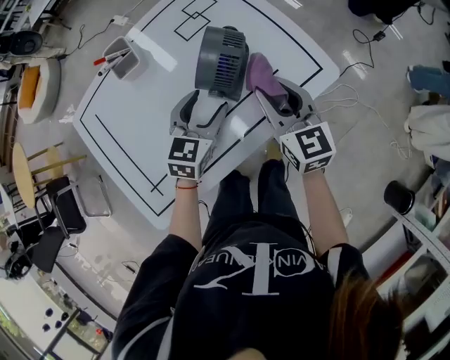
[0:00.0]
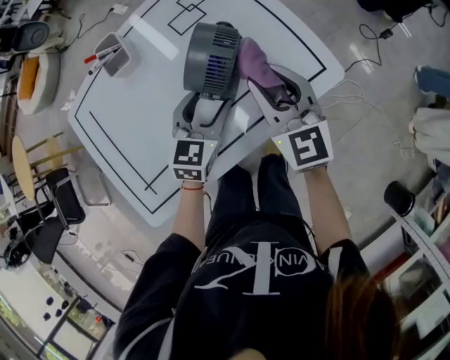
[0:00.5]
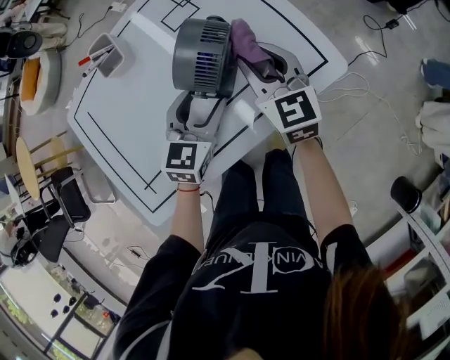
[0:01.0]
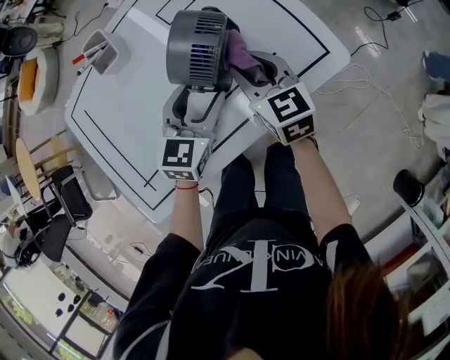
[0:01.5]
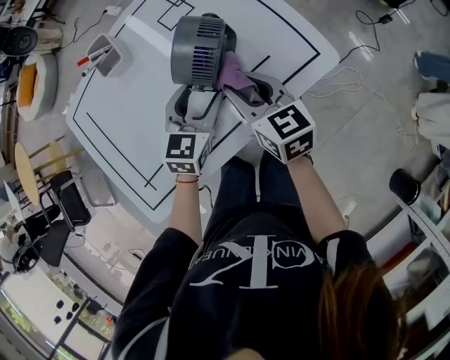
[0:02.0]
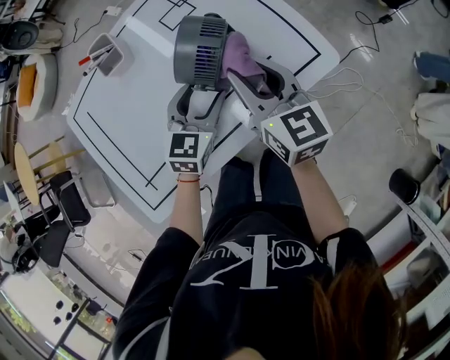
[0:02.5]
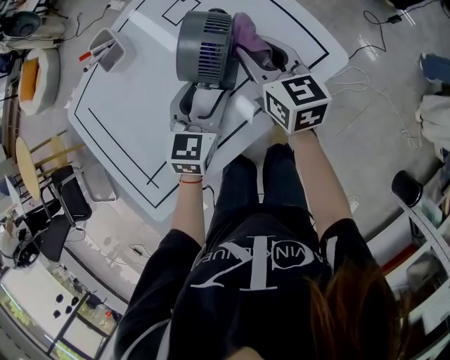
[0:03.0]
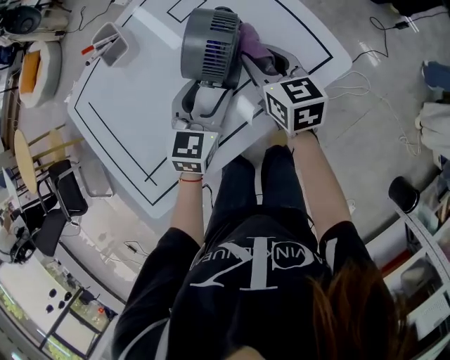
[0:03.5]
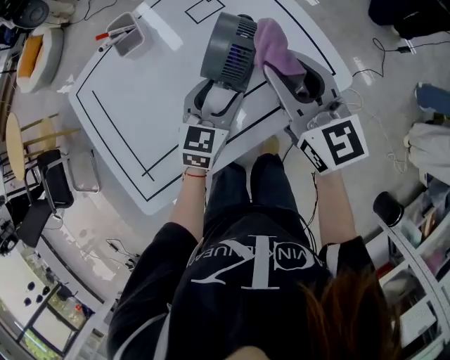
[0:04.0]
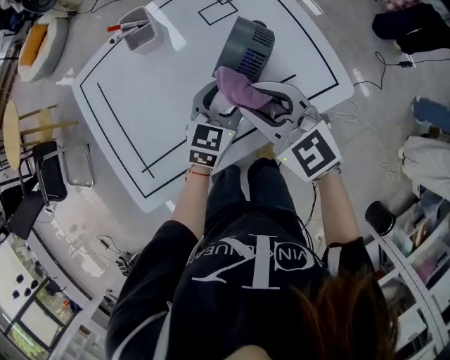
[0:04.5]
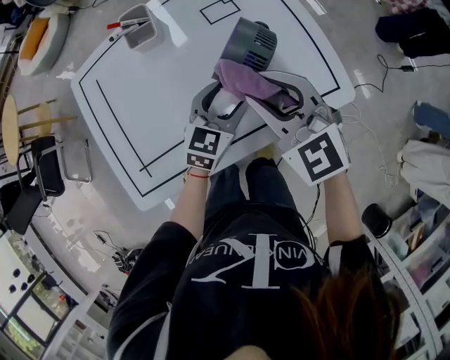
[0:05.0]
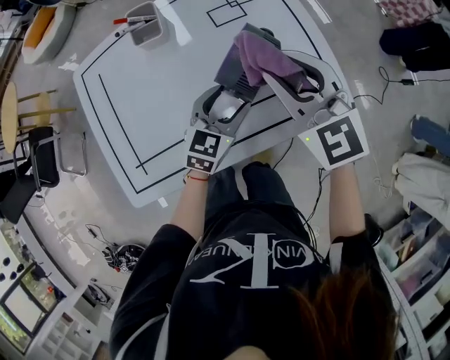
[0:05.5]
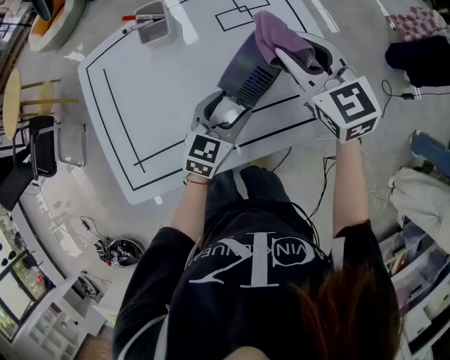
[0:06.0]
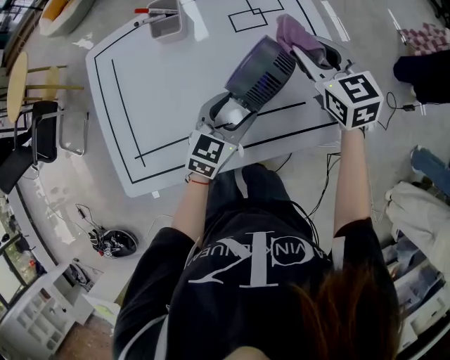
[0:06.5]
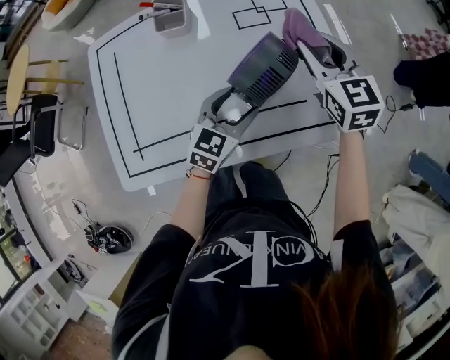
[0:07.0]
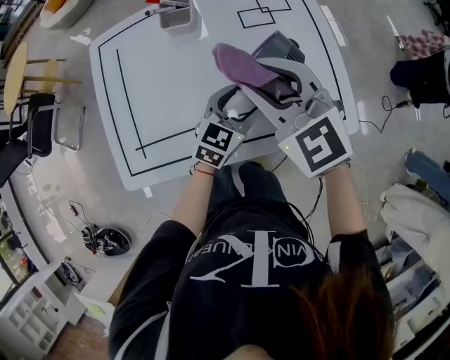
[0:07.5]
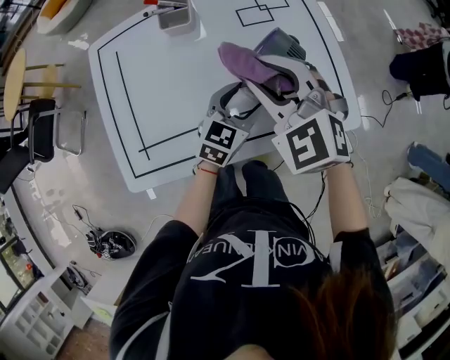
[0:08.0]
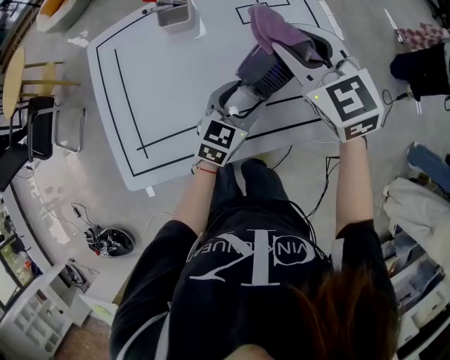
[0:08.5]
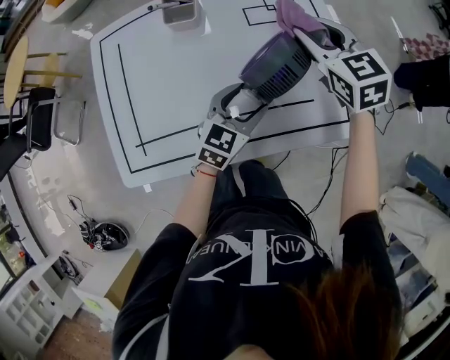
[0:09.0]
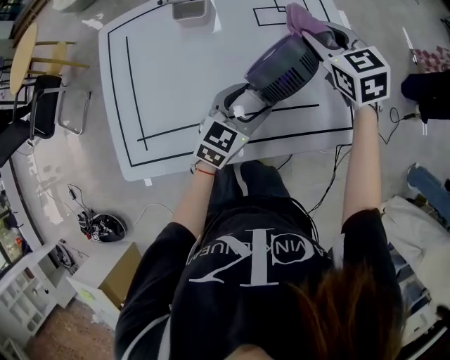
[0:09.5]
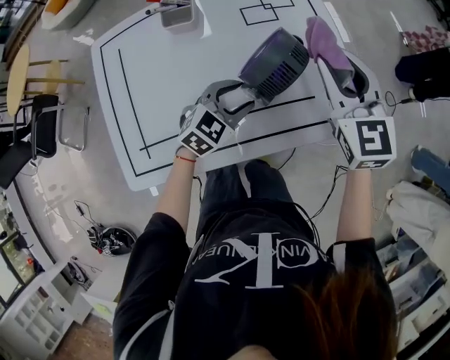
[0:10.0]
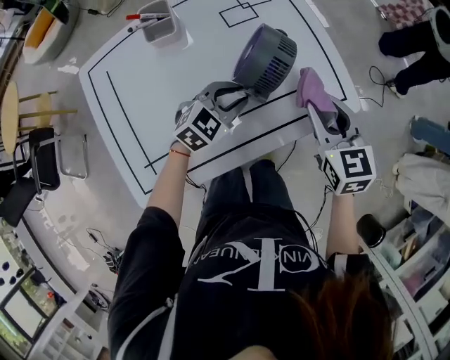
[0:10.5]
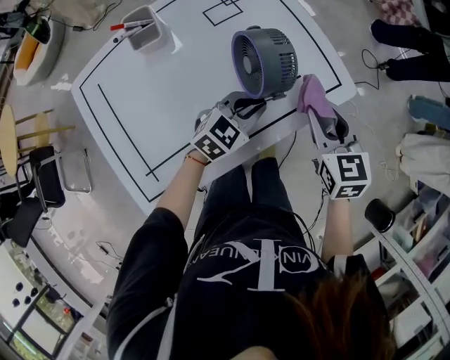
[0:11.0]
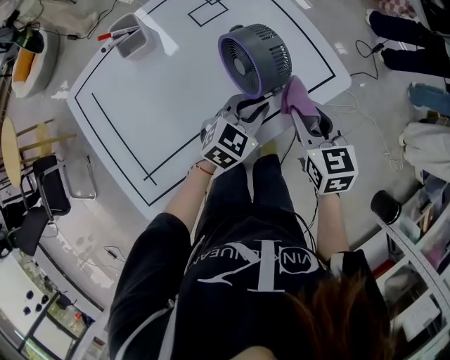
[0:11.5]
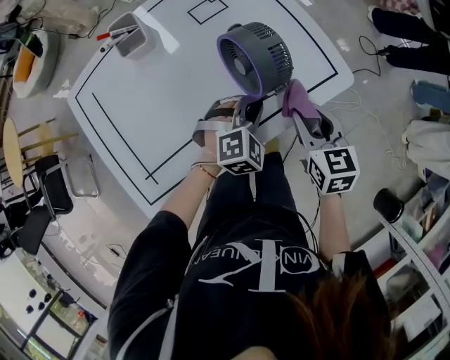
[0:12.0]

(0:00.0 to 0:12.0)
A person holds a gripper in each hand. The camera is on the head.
0:02.0 - 0:04.0: The right gripper swings up and down, approximately 15 cm each way, with 2 reversals, and swivels about 20 degrees.
0:04.0 - 0:06.0: The right gripper heads forward, covering roughly 10 cm, and swivels about 30 degrees.
0:06.0 - 0:08.0: The right gripper is displaced to the left and backward by roughly 15 cm, and changes its angle by approximately 30 degrees.
0:08.0 - 0:10.0: The right gripper goes approximately 15 cm to the right and forward, and swivels about 30 degrees, while the left gripper turns by approximately 20 degrees.
0:10.0 - 0:12.0: The right gripper travels downward, backward and to the right by roughly 20 cm, and swivels about 40 degrees; the left gripper moves to the right, about 10 cm, swivels approximately 30 degrees, and closes its fingers.

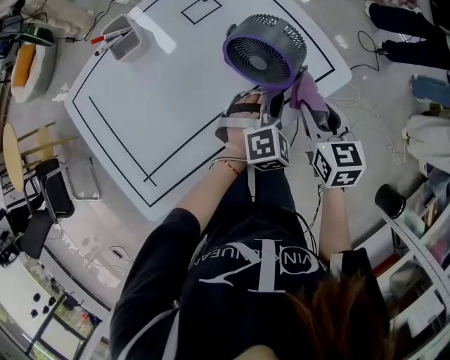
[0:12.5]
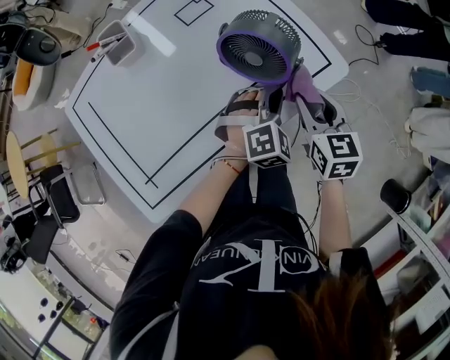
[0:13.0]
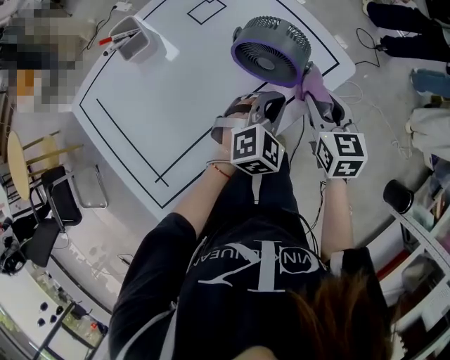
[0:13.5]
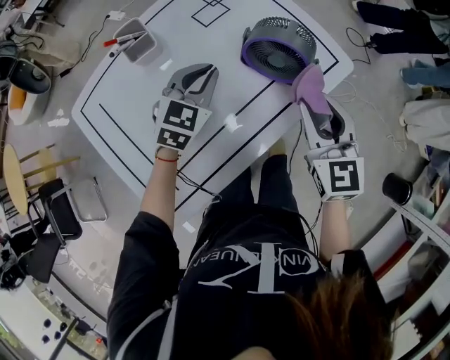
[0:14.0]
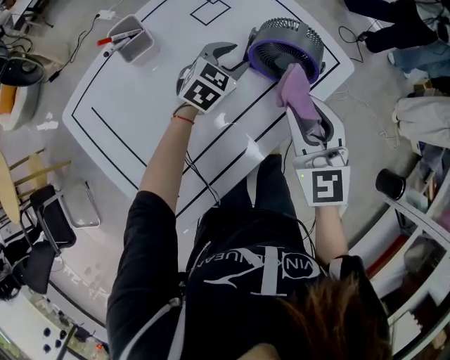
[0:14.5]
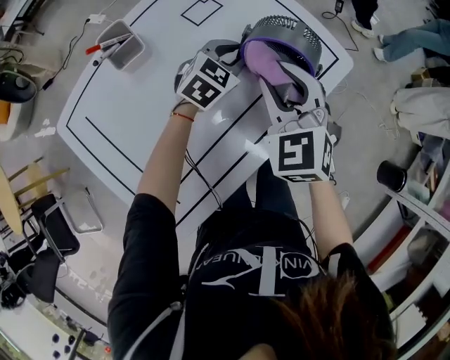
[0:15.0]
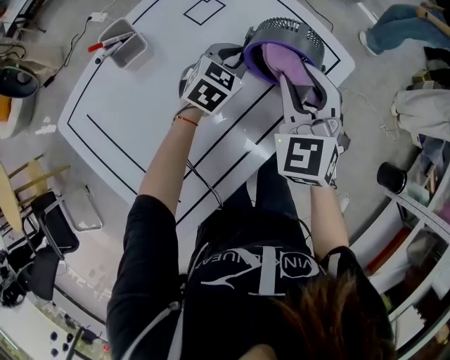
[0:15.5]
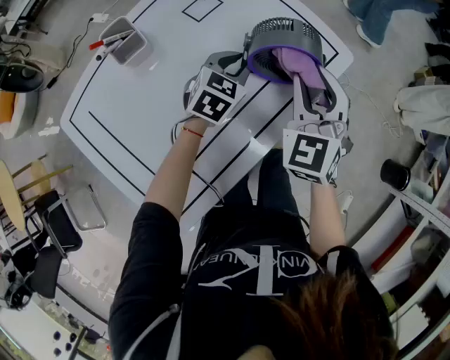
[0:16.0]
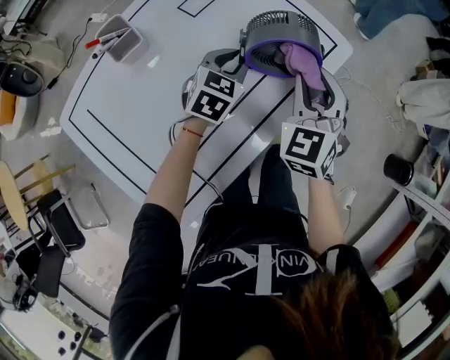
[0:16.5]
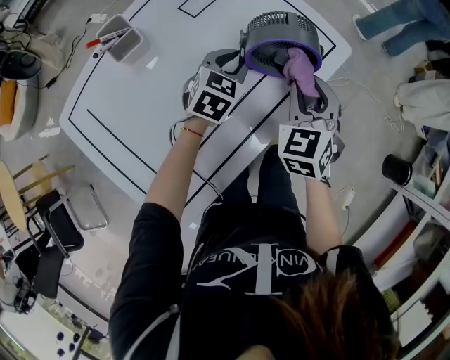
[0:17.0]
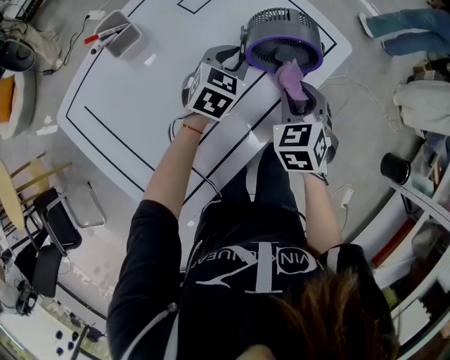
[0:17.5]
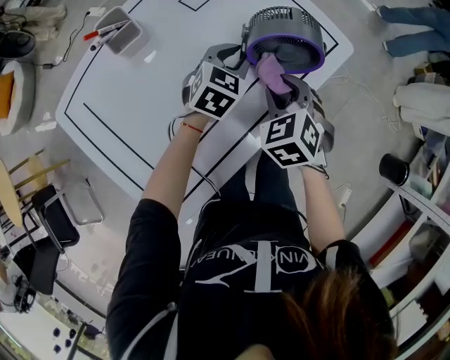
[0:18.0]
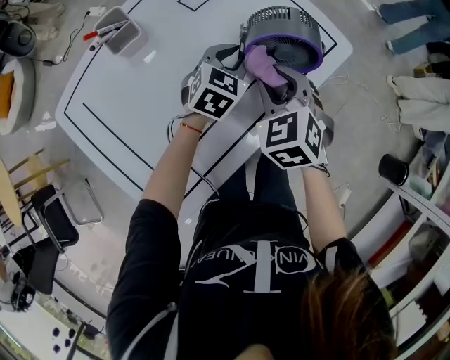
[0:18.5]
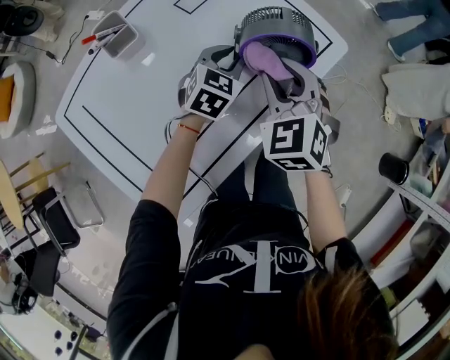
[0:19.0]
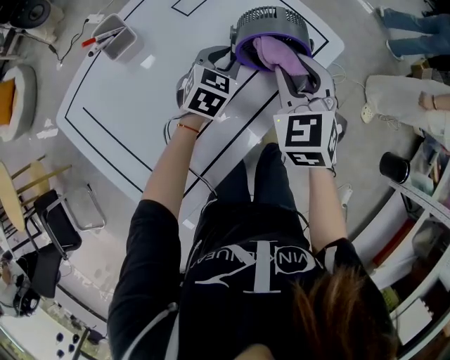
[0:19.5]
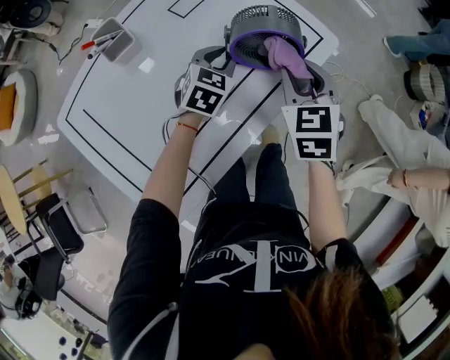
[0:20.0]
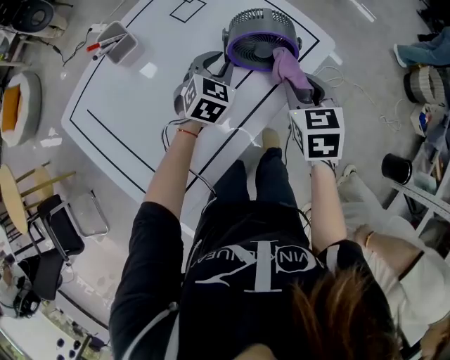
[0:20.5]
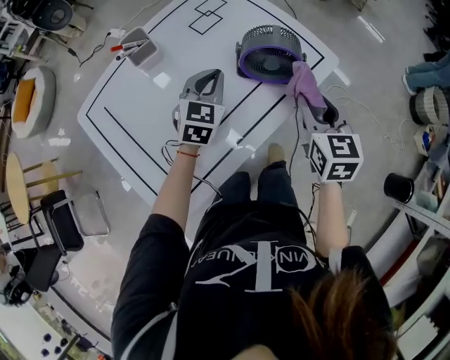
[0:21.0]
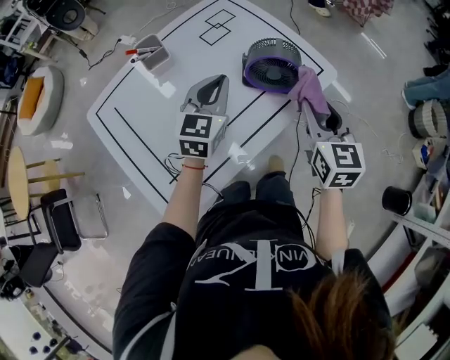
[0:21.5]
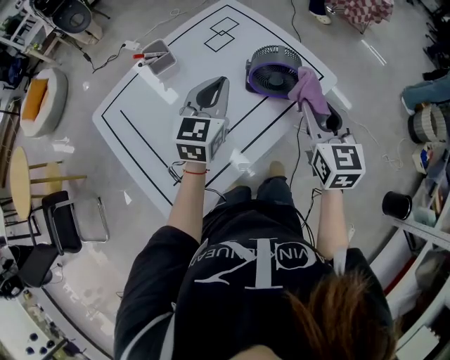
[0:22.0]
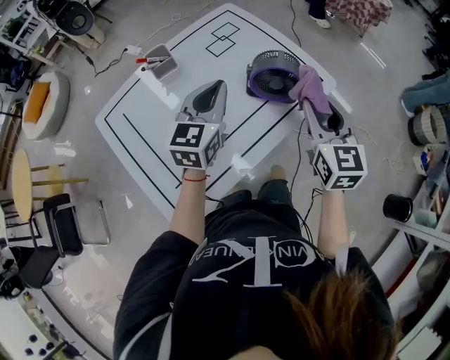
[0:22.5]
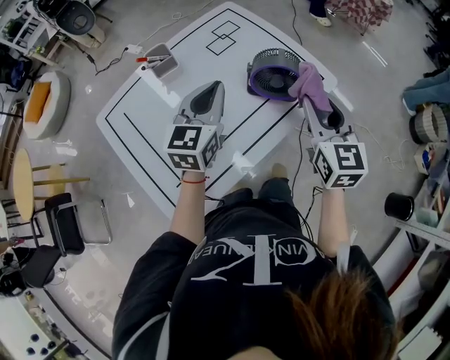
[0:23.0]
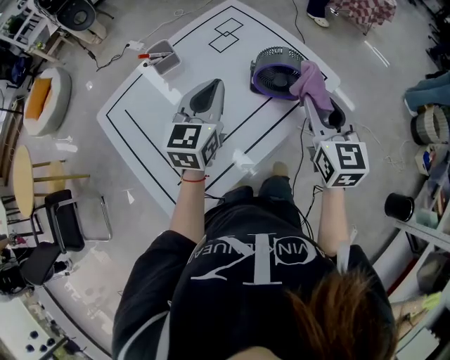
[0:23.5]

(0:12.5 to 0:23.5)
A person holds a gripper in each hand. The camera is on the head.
0:12.5 - 0:14.5: The right gripper is displaced to the left, upward and backward by about 15 cm, and rotates approximately 30 degrees, while the left gripper is displaced to the left and forward by some 15 cm, swivels approximately 30 degrees, and opens its fingers.
0:14.5 - 0:16.0: The right gripper is displaced forward by approximately 5 cm, and swivels about 20 degrees. Meanwhile the left gripper closes up.
0:16.0 - 0:18.0: The right gripper travels downward by approximately 10 cm, and turns by about 30 degrees.
0:18.0 - 0:20.0: The right gripper shifts approximately 10 cm upward and to the right, and rotates approximately 20 degrees.
0:20.0 - 0:21.5: The right gripper travels upward by approximately 5 cm, and turns by approximately 20 degrees; the left gripper goes some 15 cm upward and backward, and turns by roughly 30 degrees.
0:21.5 - 0:23.5: The left gripper travels upward by roughly 5 cm.

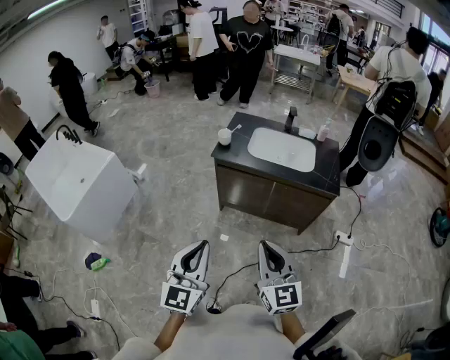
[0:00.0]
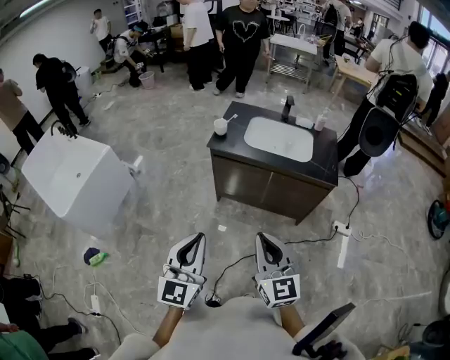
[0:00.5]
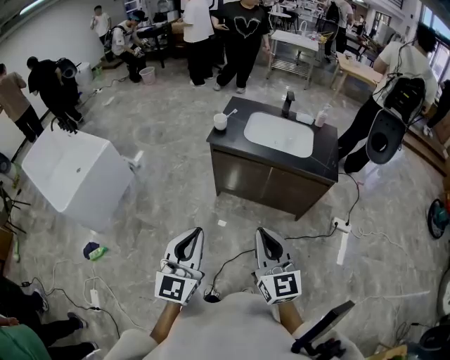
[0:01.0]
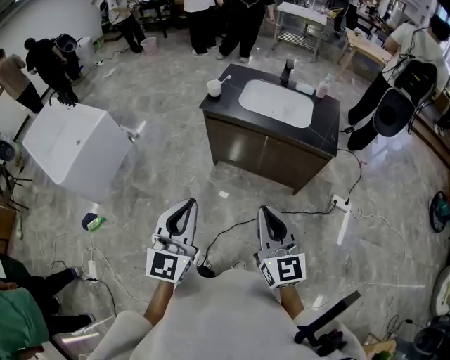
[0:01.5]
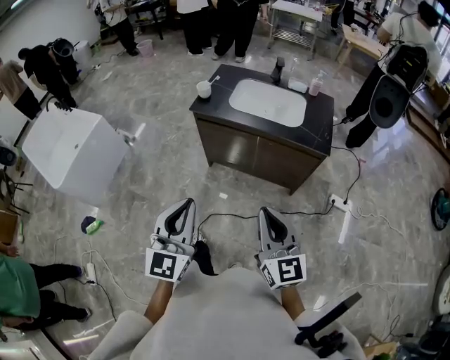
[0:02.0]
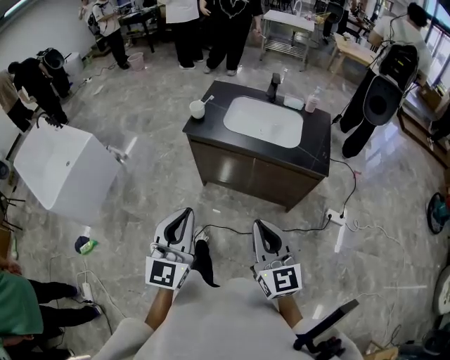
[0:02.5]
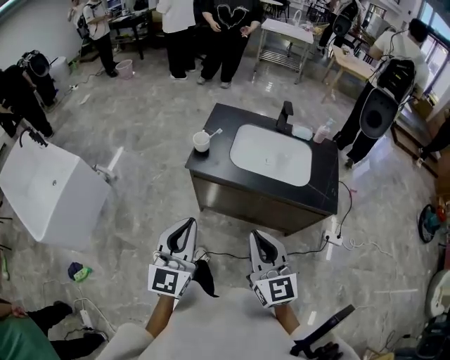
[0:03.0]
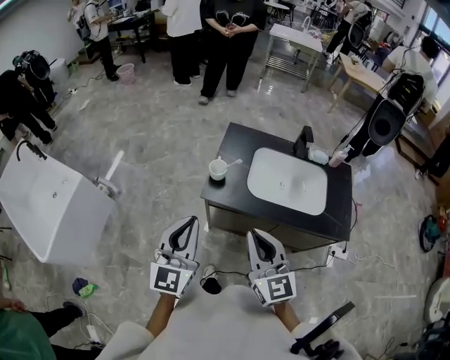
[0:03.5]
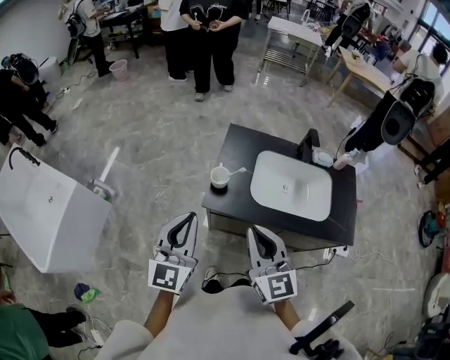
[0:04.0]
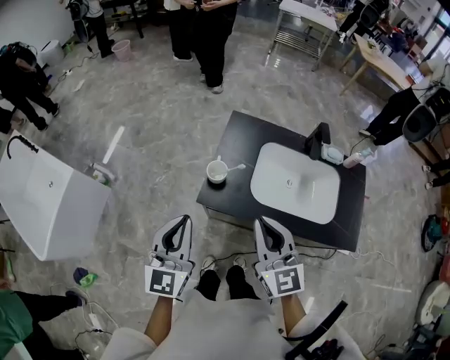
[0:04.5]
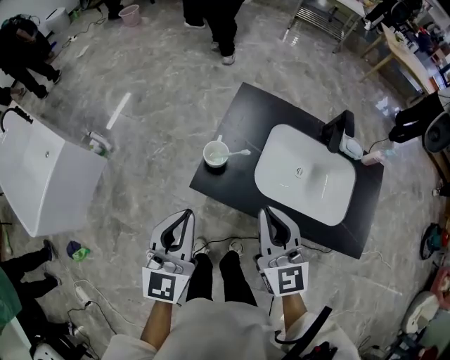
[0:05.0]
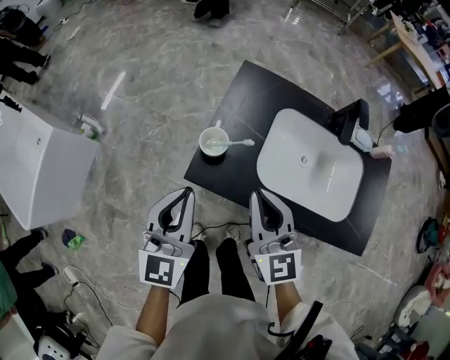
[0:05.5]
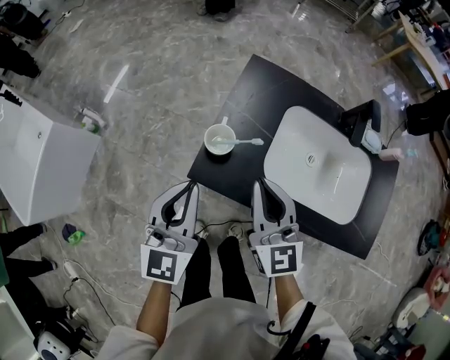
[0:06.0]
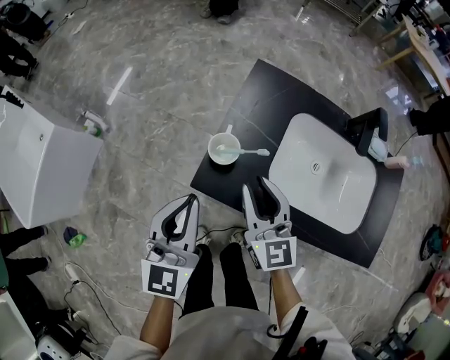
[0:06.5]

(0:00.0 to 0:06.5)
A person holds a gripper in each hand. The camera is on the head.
0:00.0 - 0:02.0: The grippers both shift to the right by roughly 10 cm.
0:02.0 - 0:04.5: Both grippers are carried forward, roughly 50 cm.
0:04.5 - 0:06.5: The right gripper is displaced downward and forward by roughly 20 cm, and opens, while the left gripper shifts about 10 cm downward and forward.
